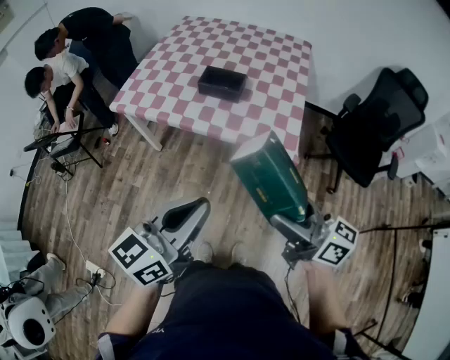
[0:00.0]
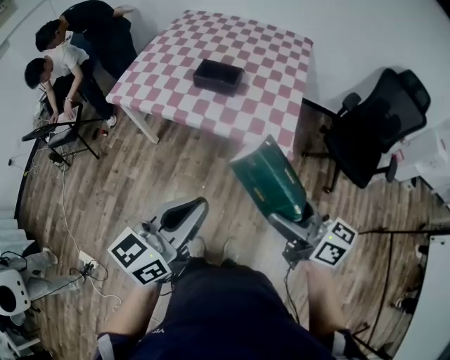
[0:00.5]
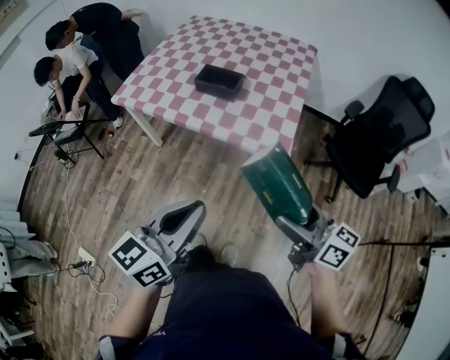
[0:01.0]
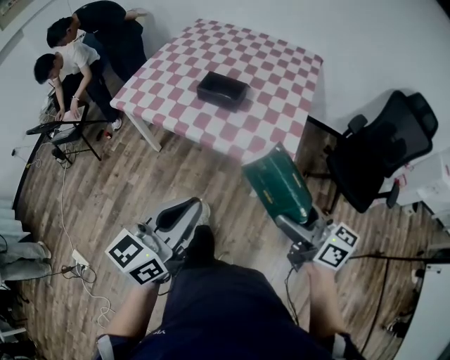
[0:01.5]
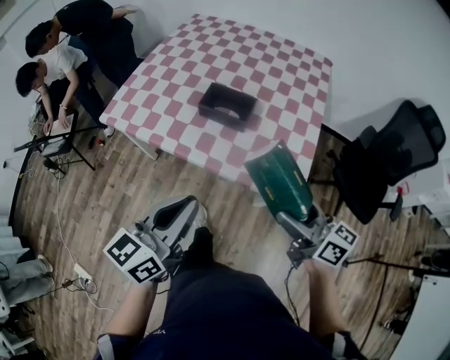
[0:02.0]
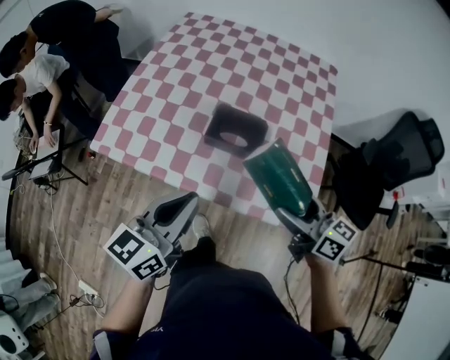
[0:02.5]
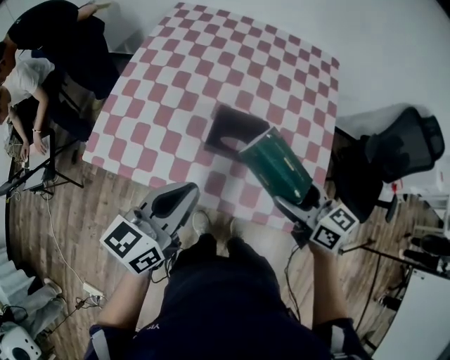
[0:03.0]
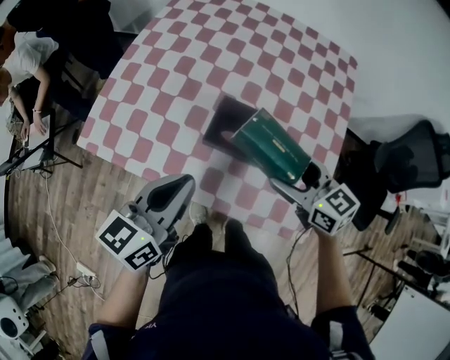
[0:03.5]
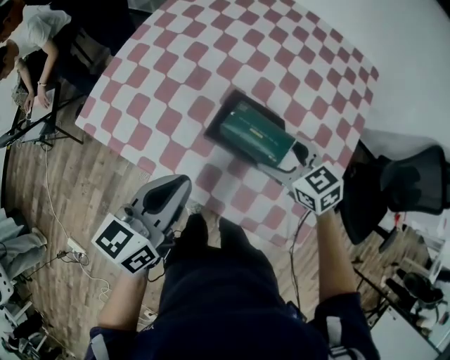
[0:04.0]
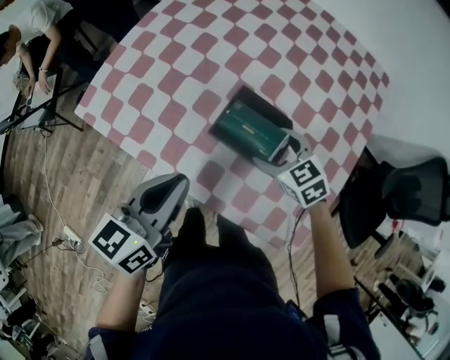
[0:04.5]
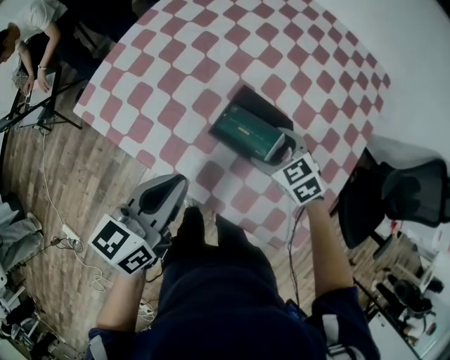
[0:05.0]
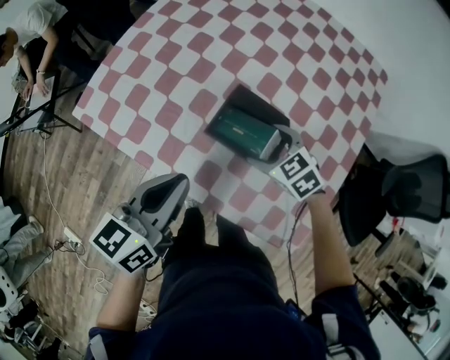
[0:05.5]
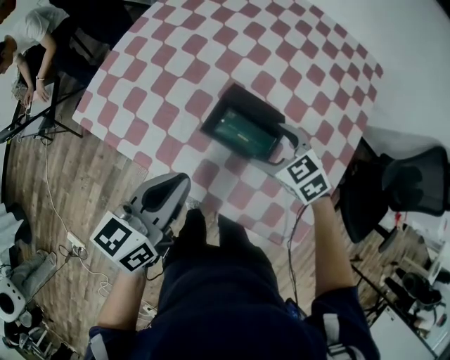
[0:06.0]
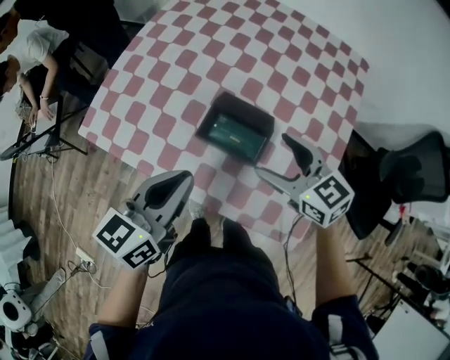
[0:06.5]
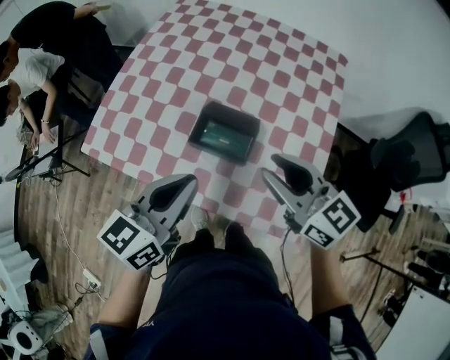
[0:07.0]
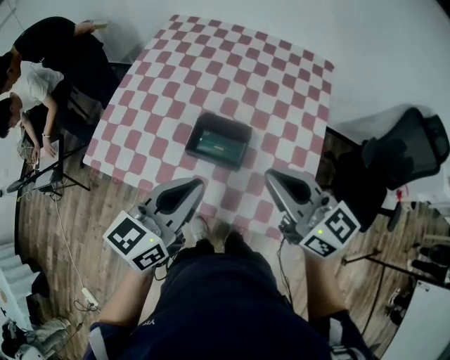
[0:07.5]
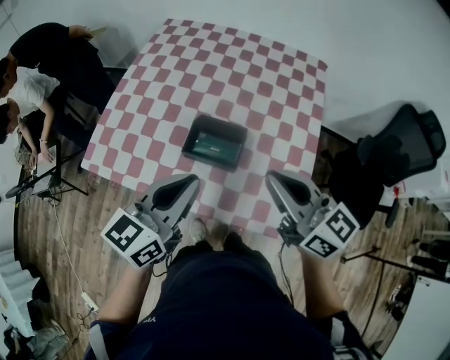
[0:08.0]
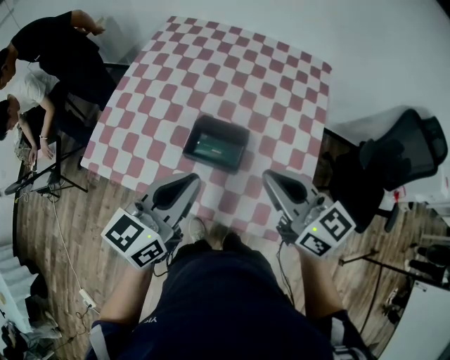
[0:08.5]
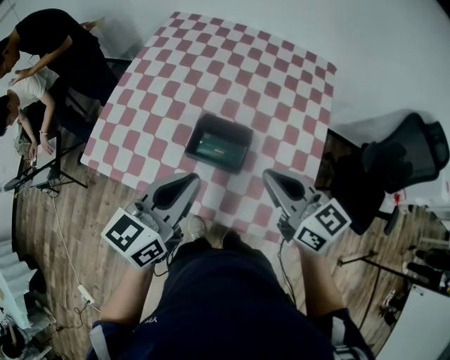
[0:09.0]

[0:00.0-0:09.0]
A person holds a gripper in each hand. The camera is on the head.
0:00.0 to 0:02.0: The grippers both shift forward by roughly 20 cm.
0:02.0 to 0:04.5: The left gripper heads forward, covering roughly 30 cm; the right gripper is displaced forward and downward by some 40 cm, and tips its fingers downward by some 40 degrees.
0:04.5 to 0:07.0: The left gripper shifts approximately 10 cm upward and to the right. Meanwhile the right gripper goes some 25 cm upward and backward, tips its fingers upward by approximately 40 degrees, and closes.

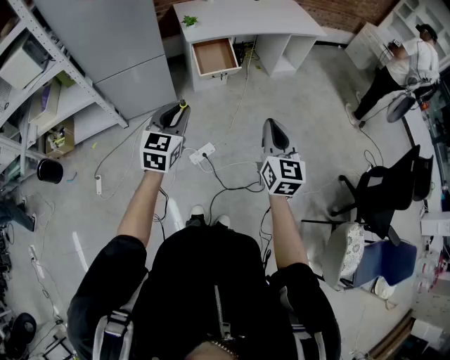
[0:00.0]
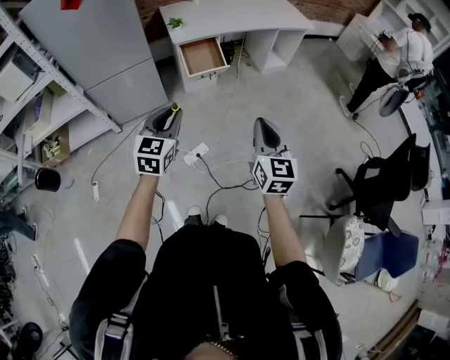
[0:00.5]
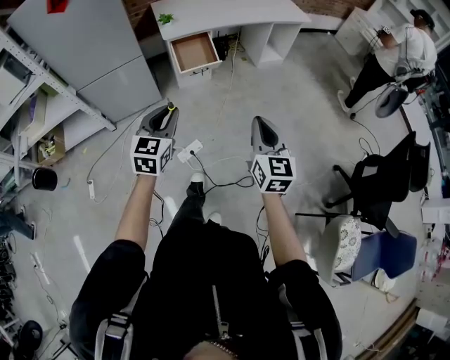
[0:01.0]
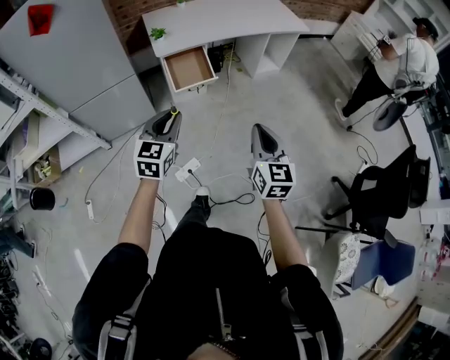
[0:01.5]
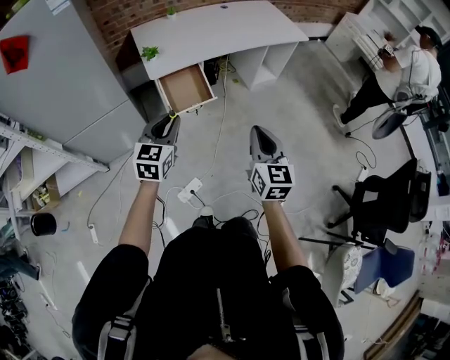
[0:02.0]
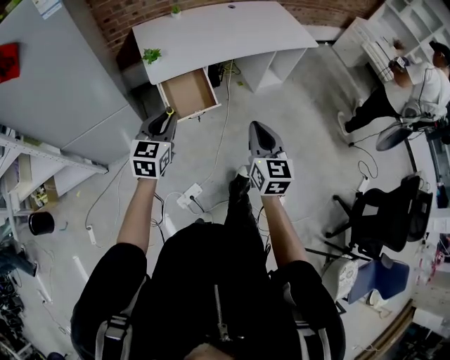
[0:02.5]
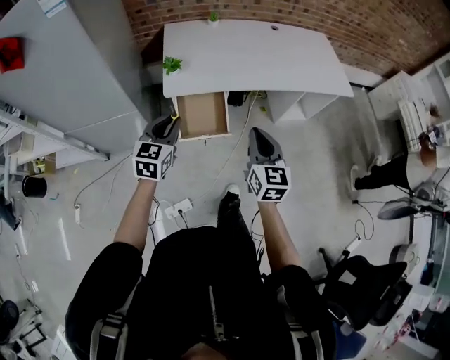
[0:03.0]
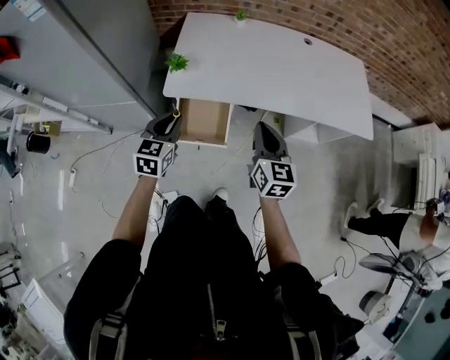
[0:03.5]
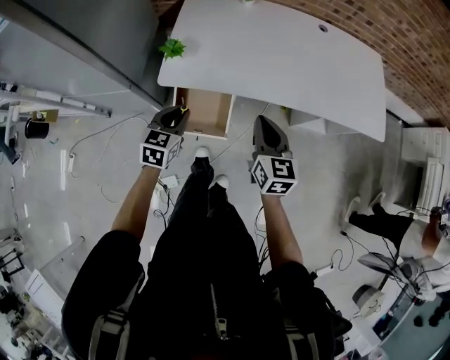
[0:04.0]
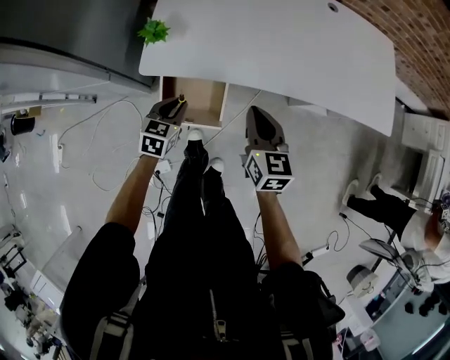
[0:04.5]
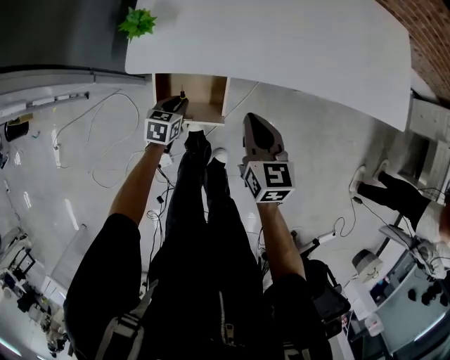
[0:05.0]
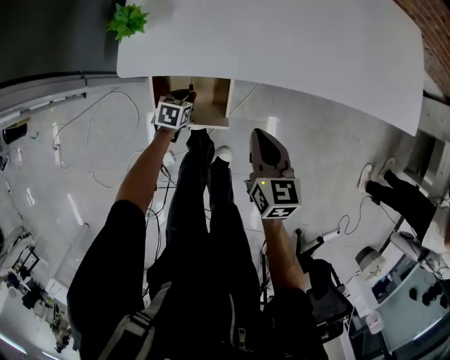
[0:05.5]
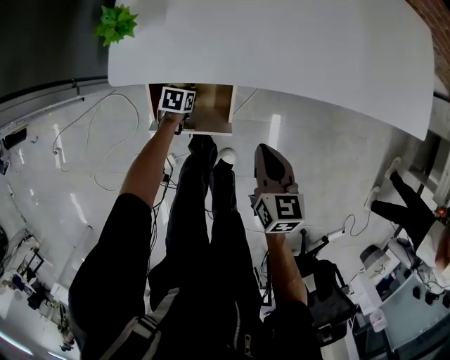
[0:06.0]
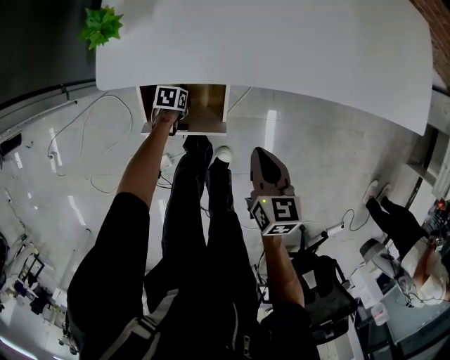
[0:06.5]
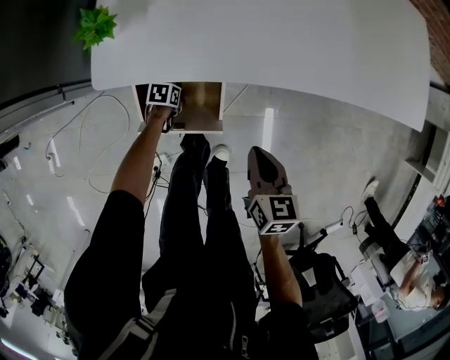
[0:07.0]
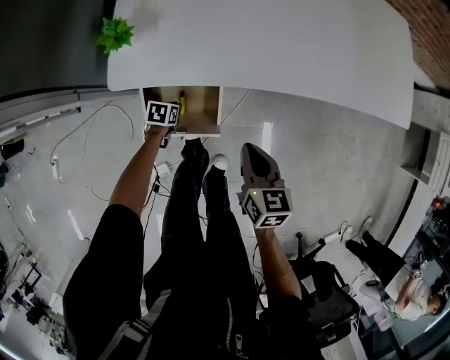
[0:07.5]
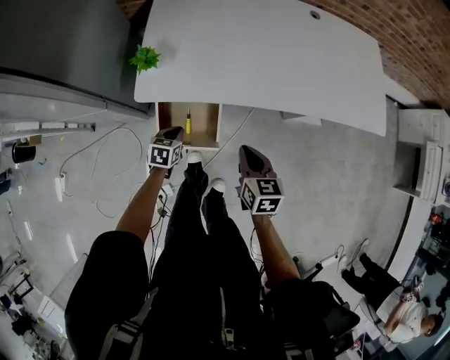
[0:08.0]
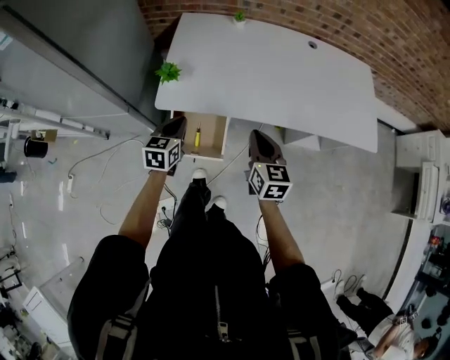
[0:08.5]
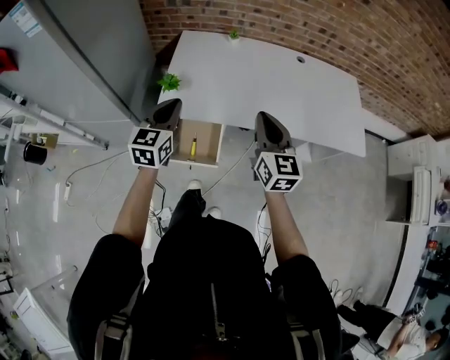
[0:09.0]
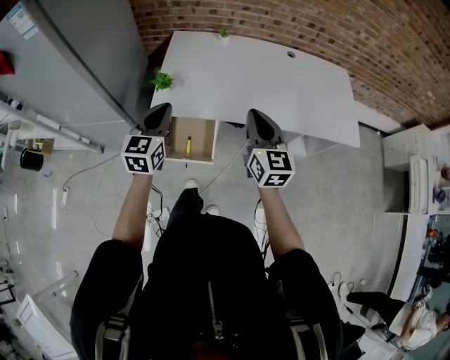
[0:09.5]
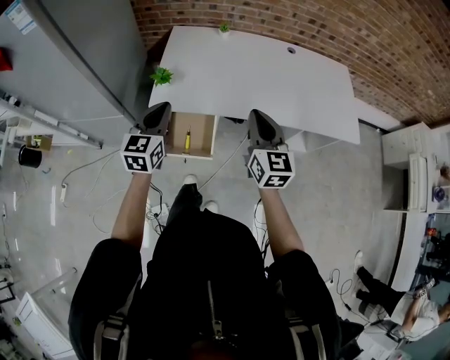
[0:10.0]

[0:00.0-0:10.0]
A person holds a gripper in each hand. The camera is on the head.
0:00.0 to 0:02.0: Both grippers travel together forward, approximately 25 cm.
0:02.0 to 0:04.0: The right gripper changes place by approximately 50 cm, and swivels roughly 30 degrees, while the left gripper shifts by approximately 35 cm, and changes its angle by approximately 30 degrees.
0:04.0 to 0:06.0: The left gripper goes roughly 40 cm downward, and points its fingers some 30 degrees further downward. Meanwhile the right gripper moves downward, approximately 20 cm, and rotates approximately 20 degrees.
0:06.0 to 0:08.0: The left gripper shifts approximately 25 cm upward, and turns by approximately 20 degrees; the right gripper is displaced upward by approximately 10 cm.
0:08.0 to 0:10.0: The left gripper heads upward, covering approximately 35 cm, and angles its fingers upward, by some 40 degrees; the right gripper is displaced upward by approximately 25 cm, and swivels approximately 30 degrees.

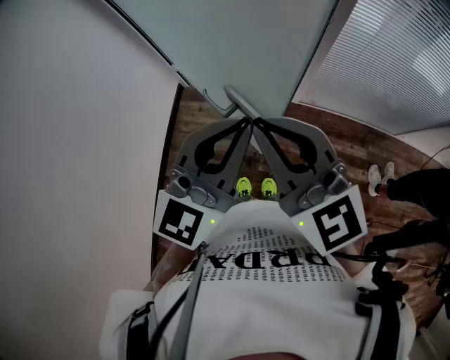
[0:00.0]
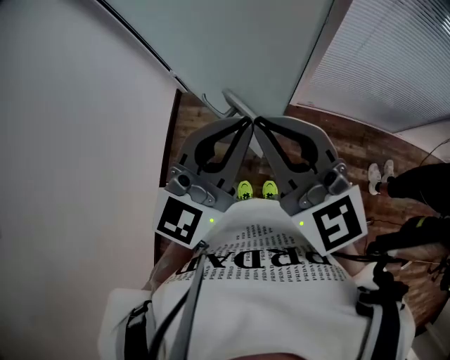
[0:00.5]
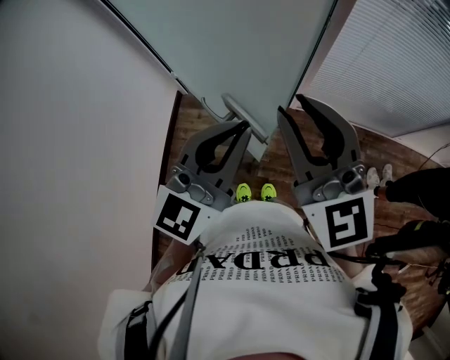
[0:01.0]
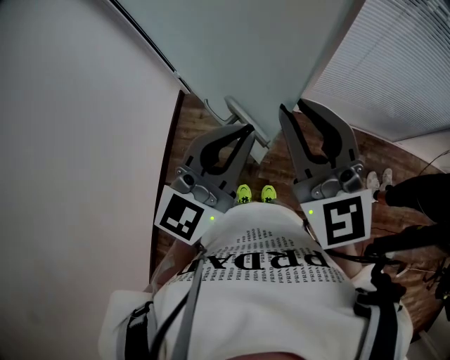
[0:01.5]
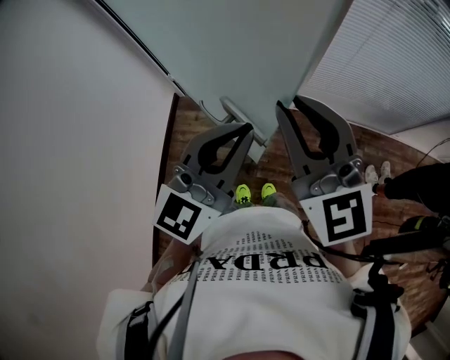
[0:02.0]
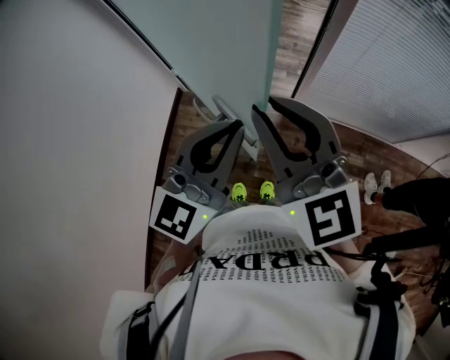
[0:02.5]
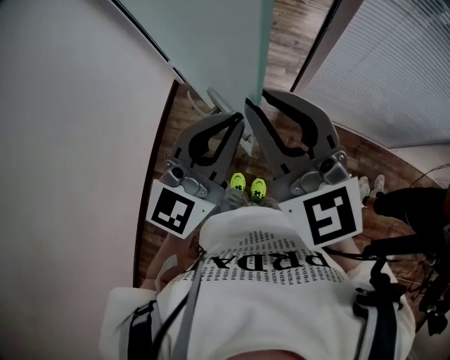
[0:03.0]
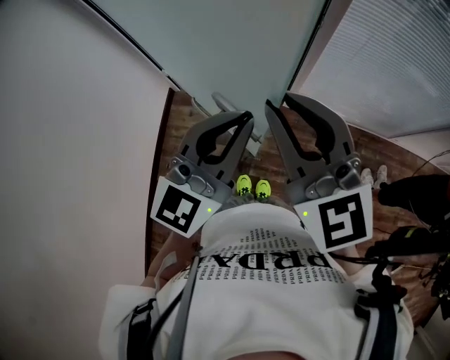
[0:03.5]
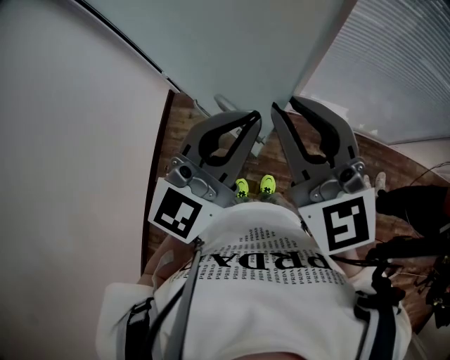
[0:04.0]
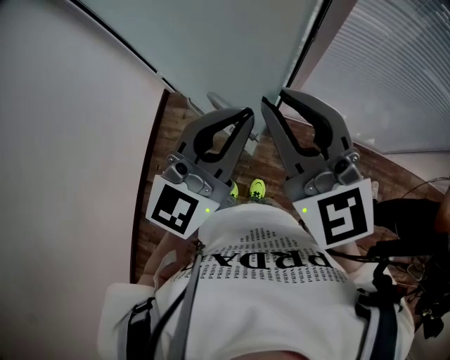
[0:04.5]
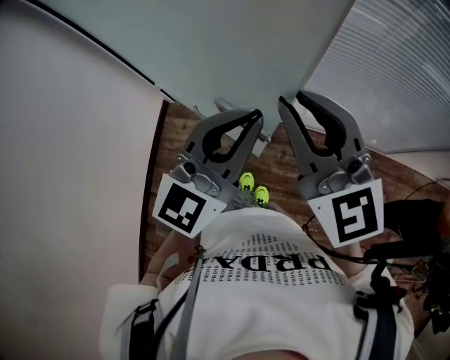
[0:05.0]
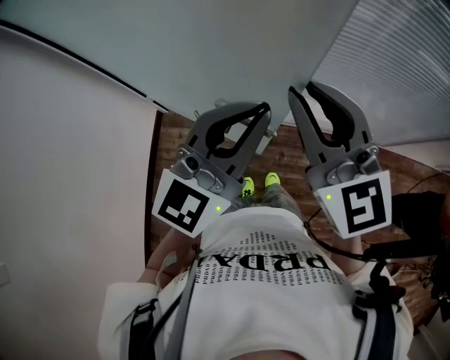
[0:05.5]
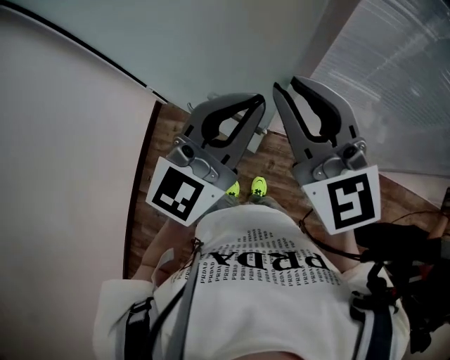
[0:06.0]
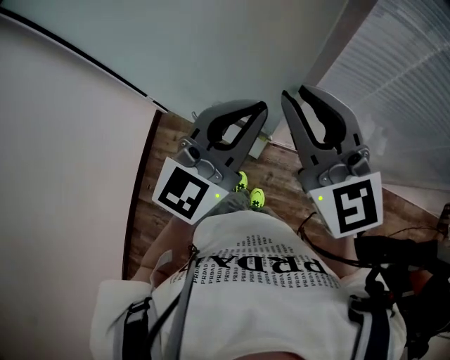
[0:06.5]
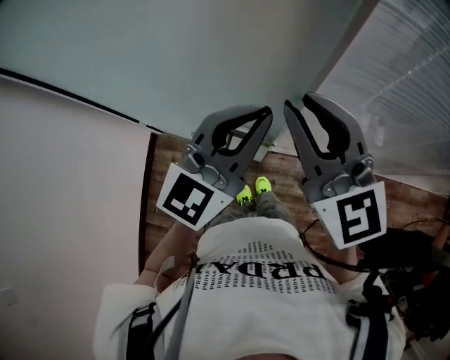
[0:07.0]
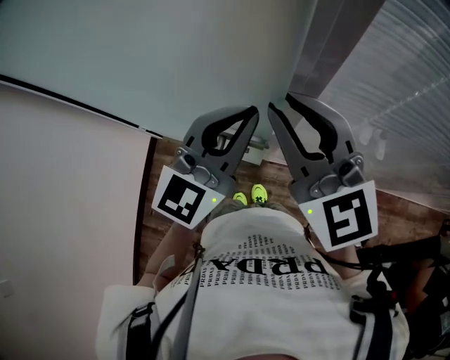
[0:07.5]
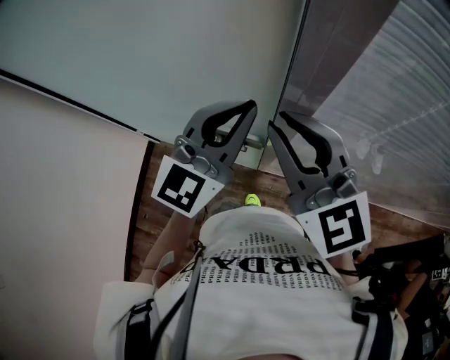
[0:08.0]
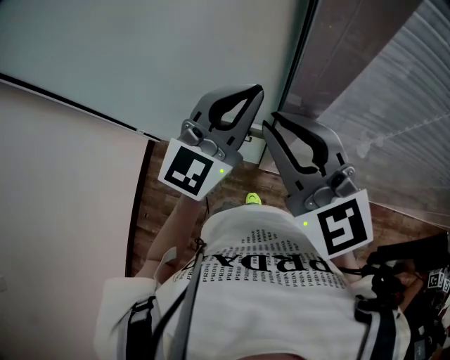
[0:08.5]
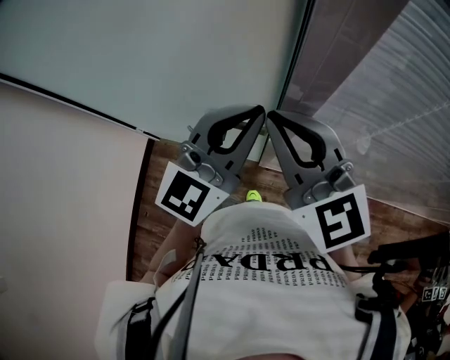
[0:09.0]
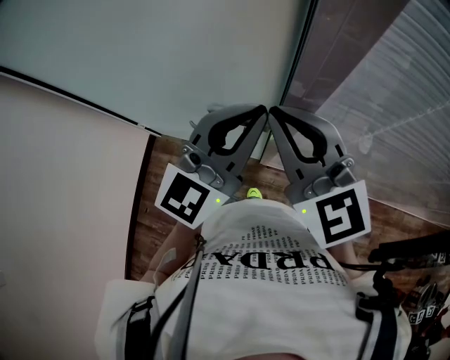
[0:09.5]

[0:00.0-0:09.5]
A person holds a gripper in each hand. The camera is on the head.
0:00.0 to 0:02.0: The right gripper changes place by roughly 5 cm.
0:02.0 to 0:07.5: There are only small adjustments of the grippers.
0:07.5 to 0:09.5: The grippers make only small movements.
